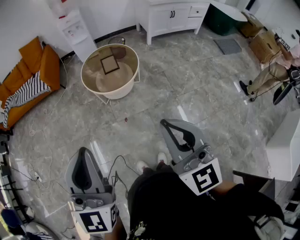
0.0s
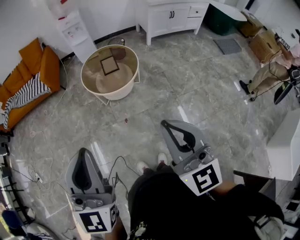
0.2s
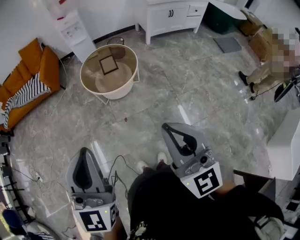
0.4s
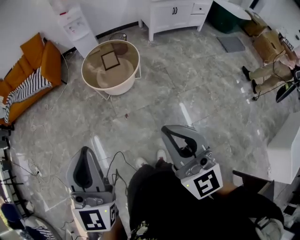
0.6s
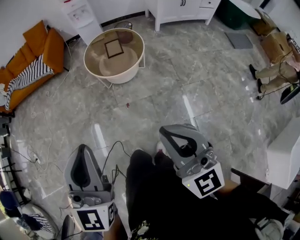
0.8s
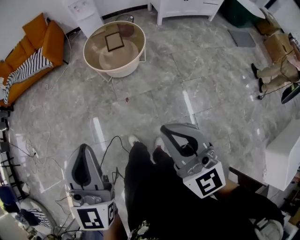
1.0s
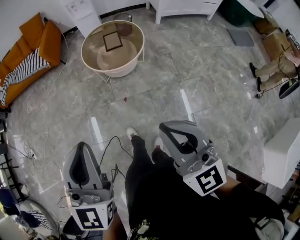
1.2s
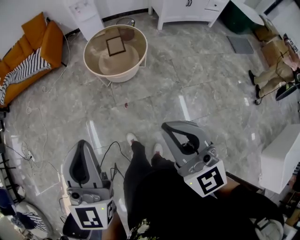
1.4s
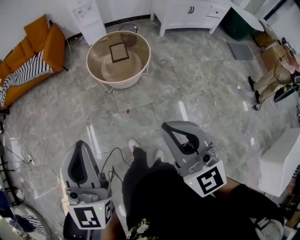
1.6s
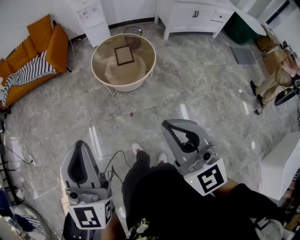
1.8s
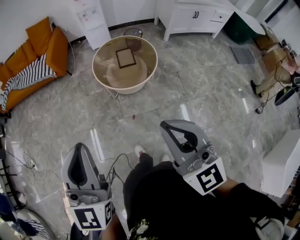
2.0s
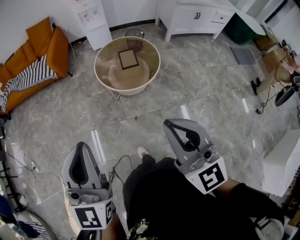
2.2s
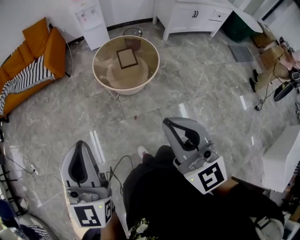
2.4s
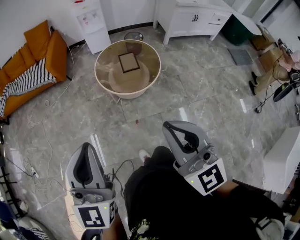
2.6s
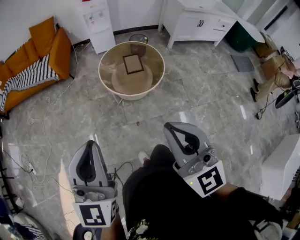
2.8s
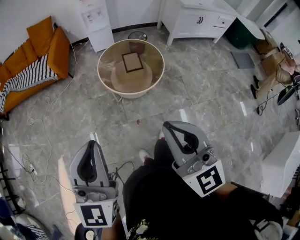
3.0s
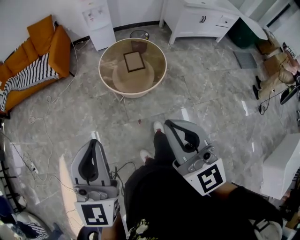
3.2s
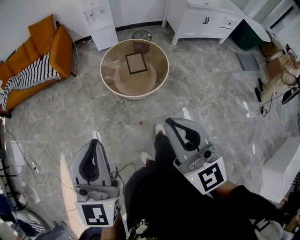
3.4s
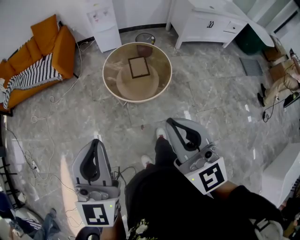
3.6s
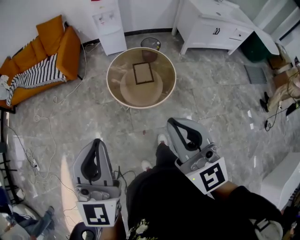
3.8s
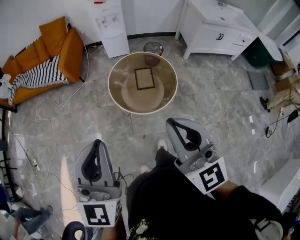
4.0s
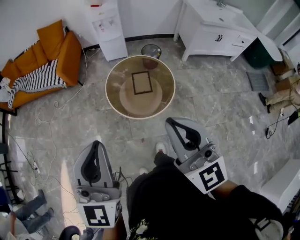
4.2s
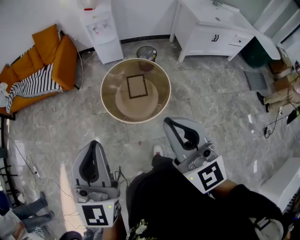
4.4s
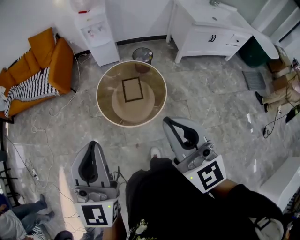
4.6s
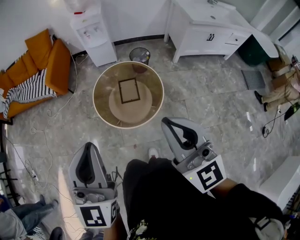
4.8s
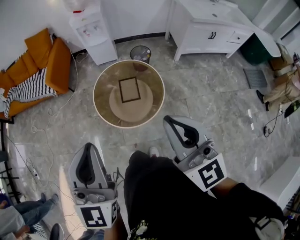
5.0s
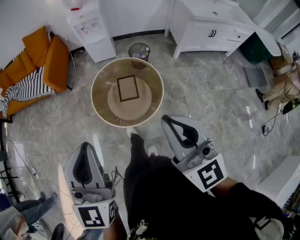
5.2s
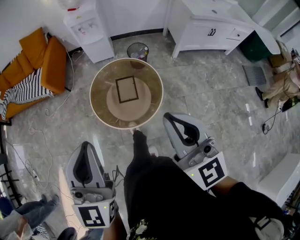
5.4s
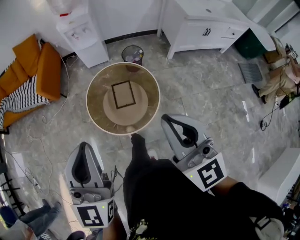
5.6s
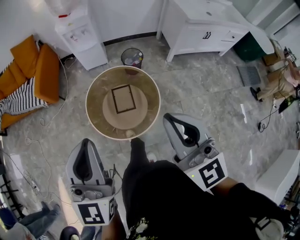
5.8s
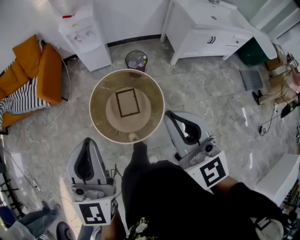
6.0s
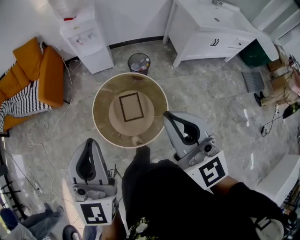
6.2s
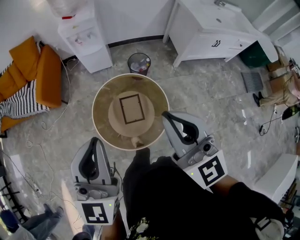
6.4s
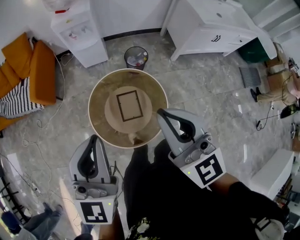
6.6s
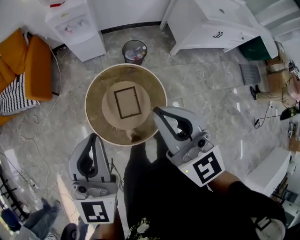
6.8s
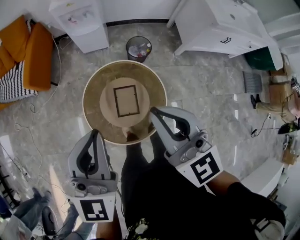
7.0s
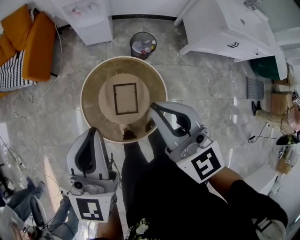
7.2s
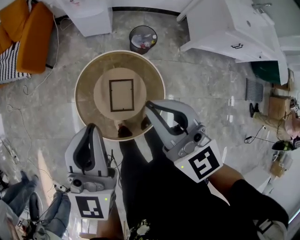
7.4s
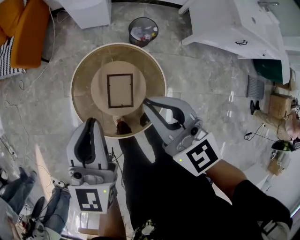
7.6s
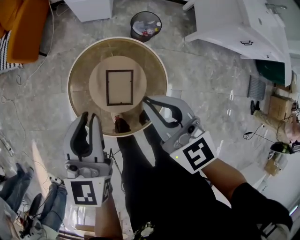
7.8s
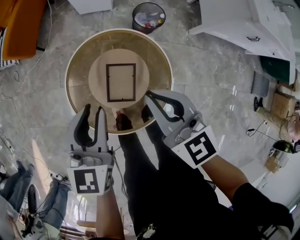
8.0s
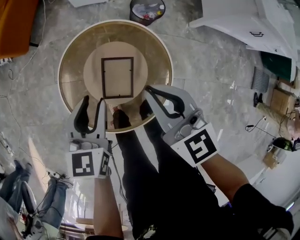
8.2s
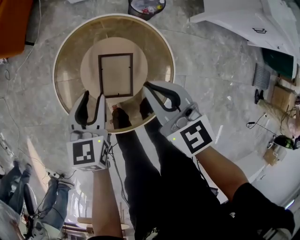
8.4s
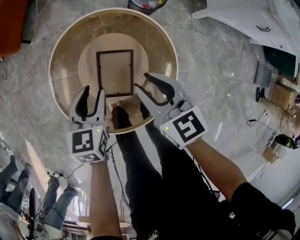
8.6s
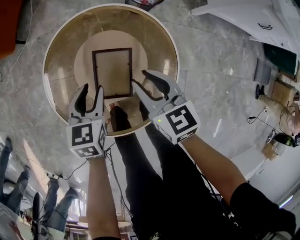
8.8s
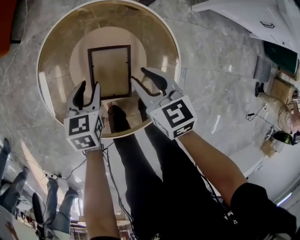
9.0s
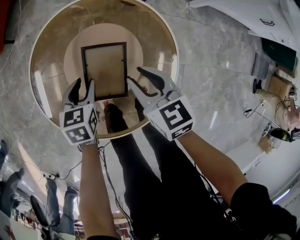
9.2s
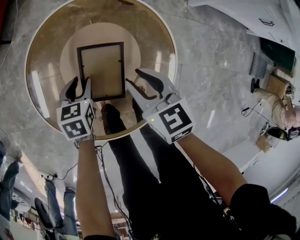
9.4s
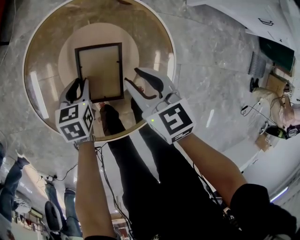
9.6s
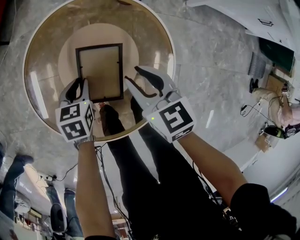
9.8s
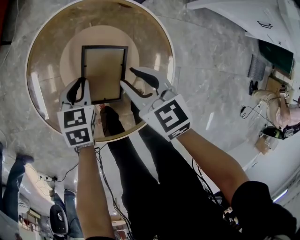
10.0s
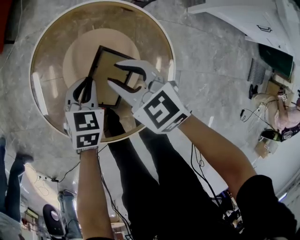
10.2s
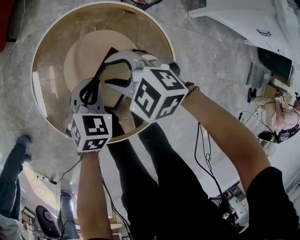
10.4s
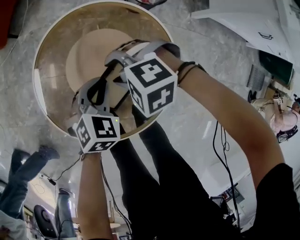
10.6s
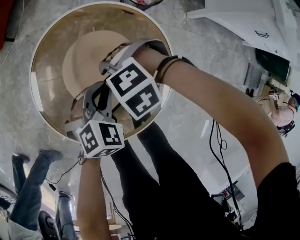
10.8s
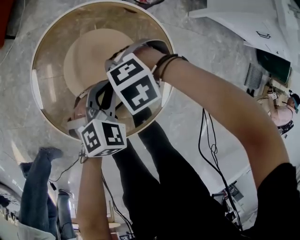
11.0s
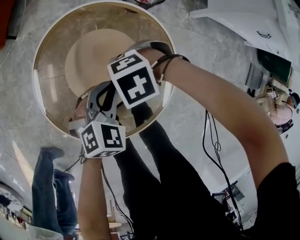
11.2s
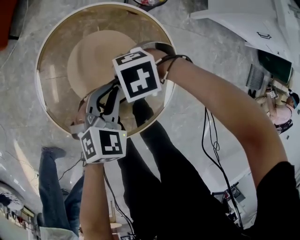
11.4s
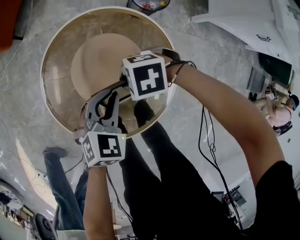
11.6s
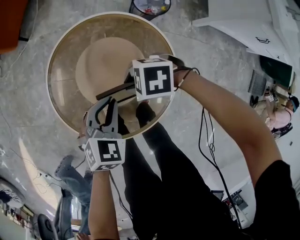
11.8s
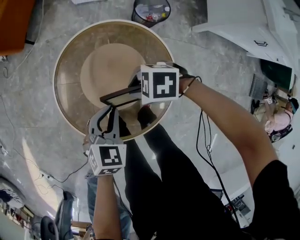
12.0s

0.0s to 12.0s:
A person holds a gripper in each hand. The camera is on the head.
0.0s to 1.6s: The two grippers go some 5 cm forward.
1.6s to 3.0s: The grippers both shift forward and to the left by some 15 cm.
3.0s to 4.4s: Both grippers travel together forward and to the right, some 30 cm.
4.4s to 6.0s: The left gripper goes approximately 25 cm forward. Meanwhile the right gripper moves forward and to the right, approximately 25 cm.
6.0s to 7.6s: Both grippers move forward and downward, about 35 cm. The right gripper changes its angle by some 30 degrees. Meanwhile the left gripper changes its angle by approximately 30 degrees.
7.6s to 9.0s: The two grippers go some 50 cm downward. The left gripper tips its fingers downward by about 30 degrees, and opens its fingers. Meanwhile the right gripper turns by approximately 30 degrees, and opens up.
9.0s to 10.4s: The right gripper travels to the left by about 5 cm, and rolls counterclockwise, seen from behind, by some 50 degrees. Meanwhile the left gripper turns by roughly 30 degrees, and closes up.
10.4s to 12.0s: The left gripper heads upward, covering some 10 cm. Meanwhile the right gripper travels downward and back again, about 5 cm each way, rotates about 30 degrees, and closes up.

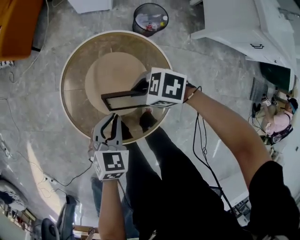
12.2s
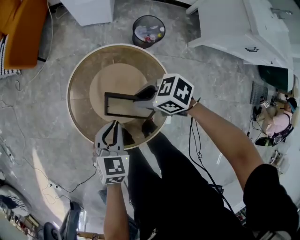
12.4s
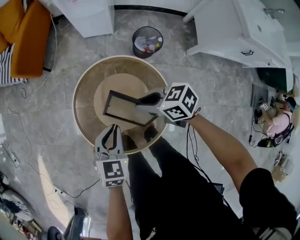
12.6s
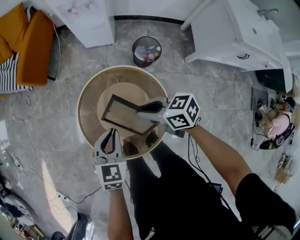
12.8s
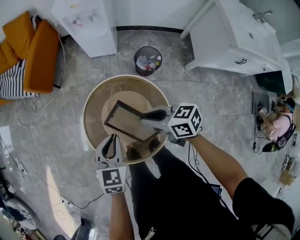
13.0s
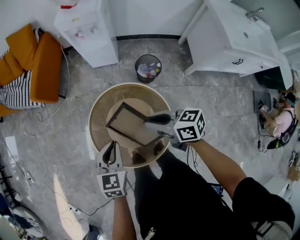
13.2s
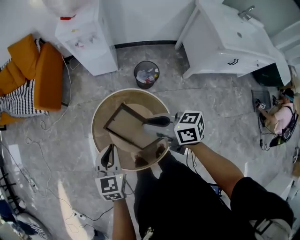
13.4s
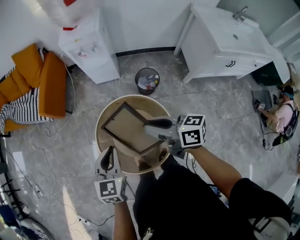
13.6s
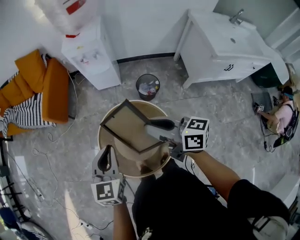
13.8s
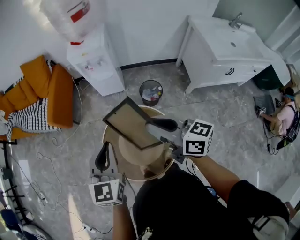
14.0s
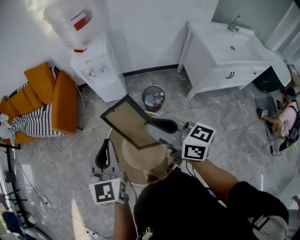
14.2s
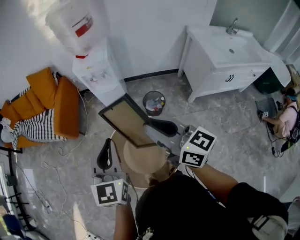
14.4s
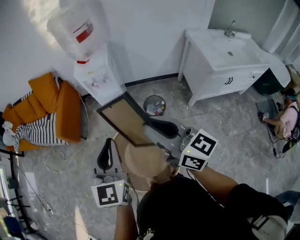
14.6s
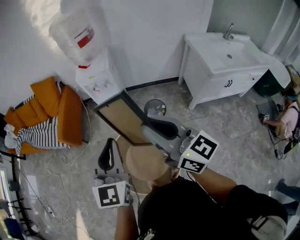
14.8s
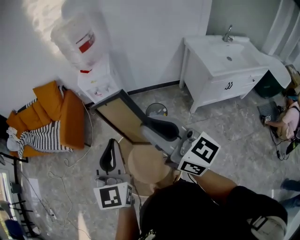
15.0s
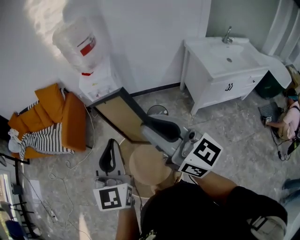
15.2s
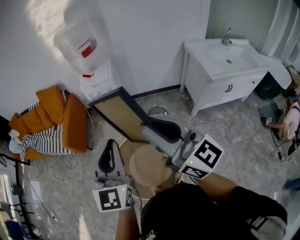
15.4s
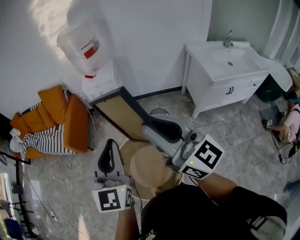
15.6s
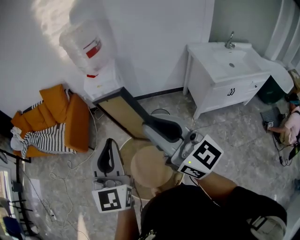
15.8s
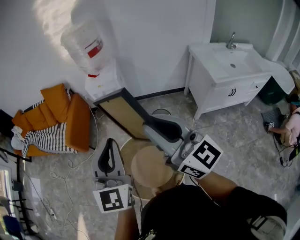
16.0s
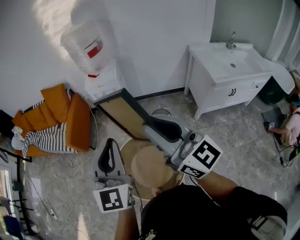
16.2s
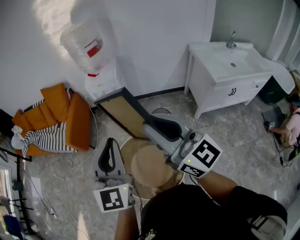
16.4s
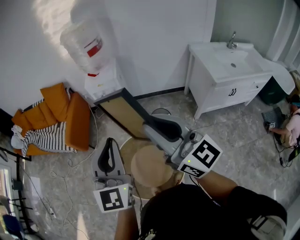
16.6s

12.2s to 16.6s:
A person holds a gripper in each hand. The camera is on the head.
12.2s to 13.6s: The two grippers go some 35 cm upward. The right gripper tilts its fingers about 40 degrees upward, while the left gripper turns by approximately 20 degrees.
13.6s to 15.2s: The two grippers go approximately 30 cm upward. The right gripper swivels approximately 50 degrees; the left gripper tilts its fingers some 30 degrees upward.
15.2s to 16.6s: The grippers move only a little.

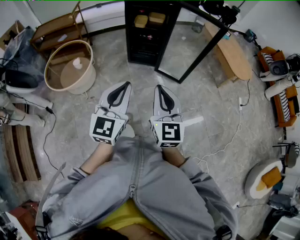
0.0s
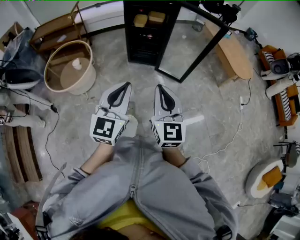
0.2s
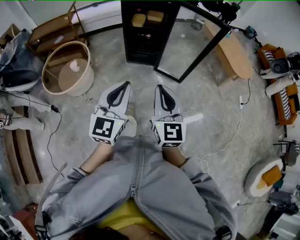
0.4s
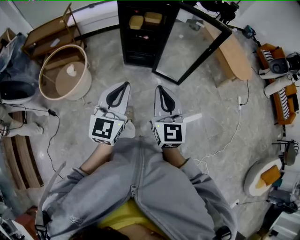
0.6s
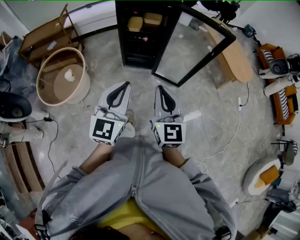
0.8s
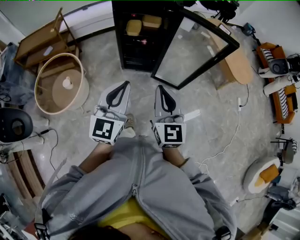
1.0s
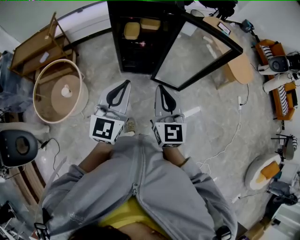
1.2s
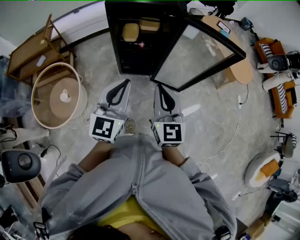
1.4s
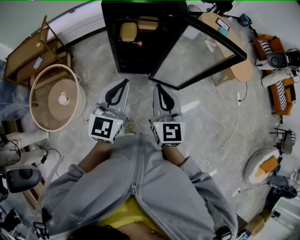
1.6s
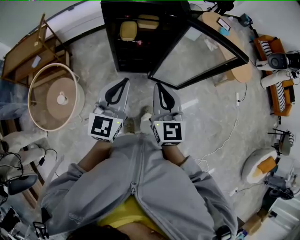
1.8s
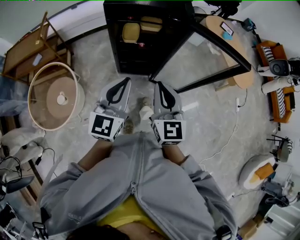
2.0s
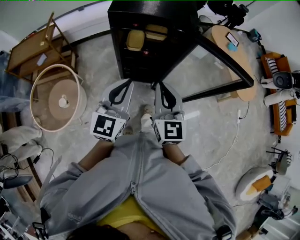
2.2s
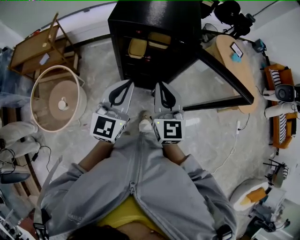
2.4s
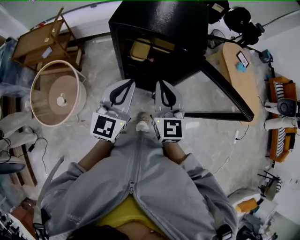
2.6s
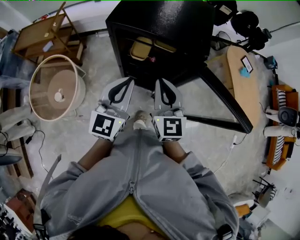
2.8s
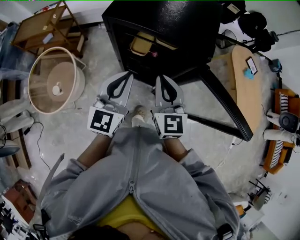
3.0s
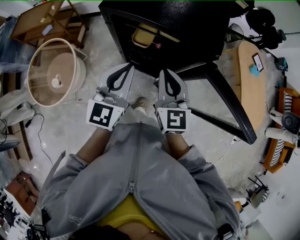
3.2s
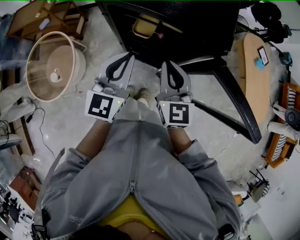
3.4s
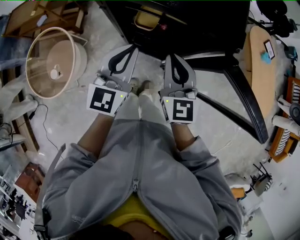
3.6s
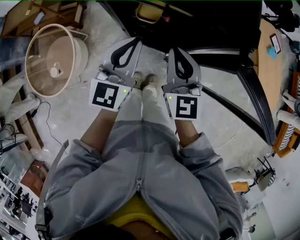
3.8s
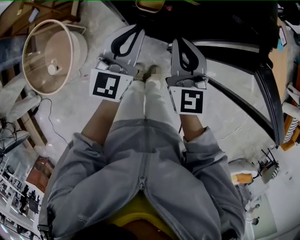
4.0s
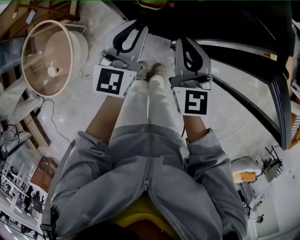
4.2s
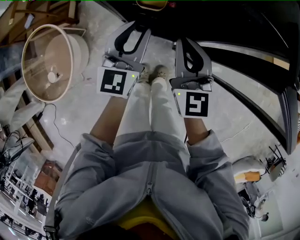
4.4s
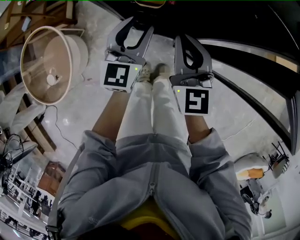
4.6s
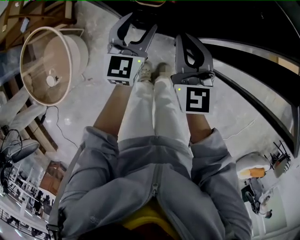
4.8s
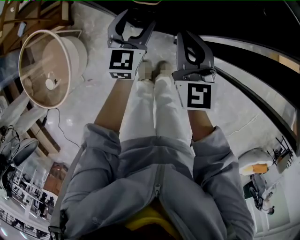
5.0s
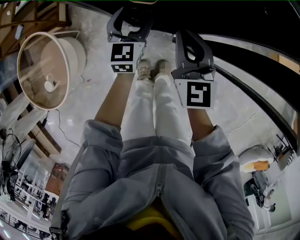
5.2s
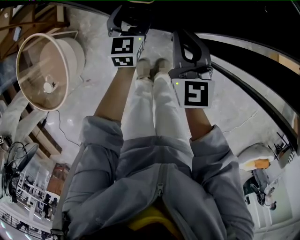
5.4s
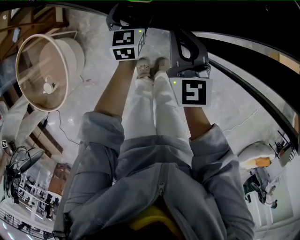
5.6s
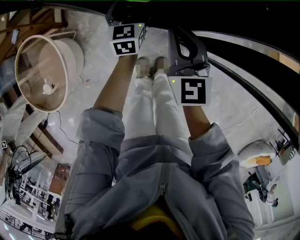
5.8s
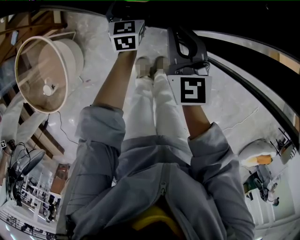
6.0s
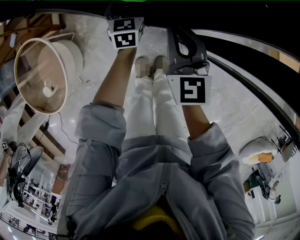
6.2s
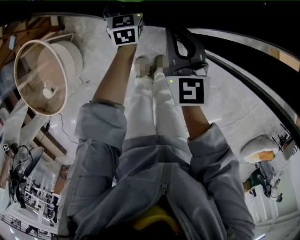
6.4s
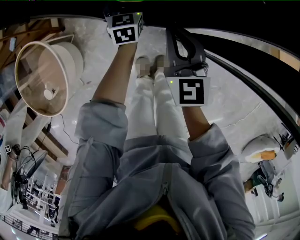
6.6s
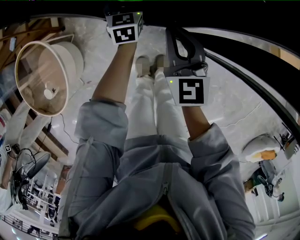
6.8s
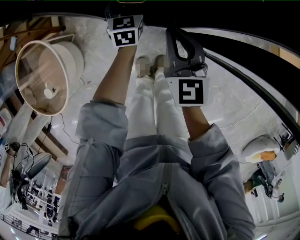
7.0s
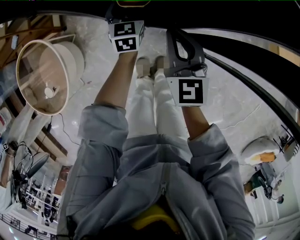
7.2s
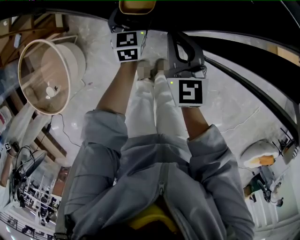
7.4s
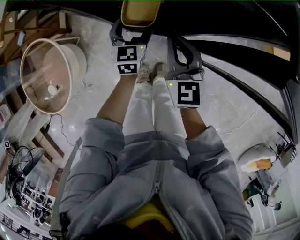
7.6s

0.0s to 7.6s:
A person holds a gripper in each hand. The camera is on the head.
0.0s to 1.6s: The two grippers go about 35 cm forward.
1.6s to 3.0s: Both grippers travel together forward, about 25 cm. The right gripper rotates some 20 degrees.
3.0s to 4.6s: Both grippers travel together downward and forward, approximately 20 cm. The left gripper opens its fingers.
4.6s to 6.0s: The right gripper travels downward by about 5 cm; the left gripper moves downward and forward, about 20 cm, and opens up.
6.0s to 7.6s: The left gripper is displaced upward and backward by about 10 cm.
